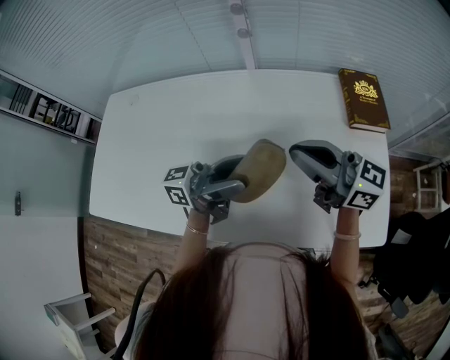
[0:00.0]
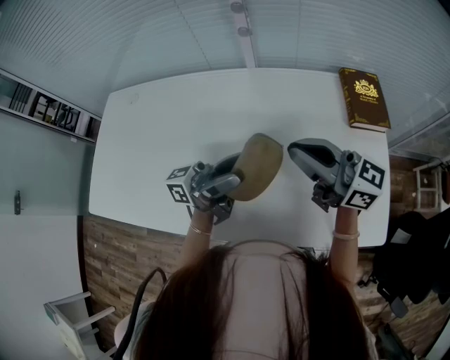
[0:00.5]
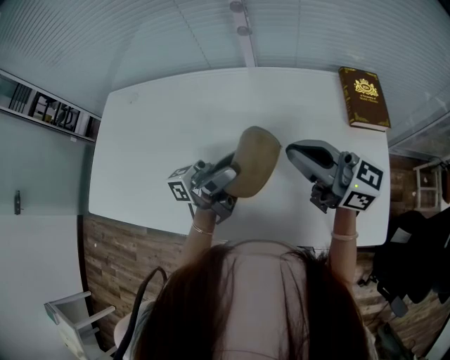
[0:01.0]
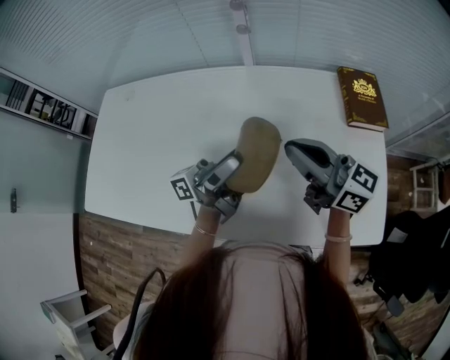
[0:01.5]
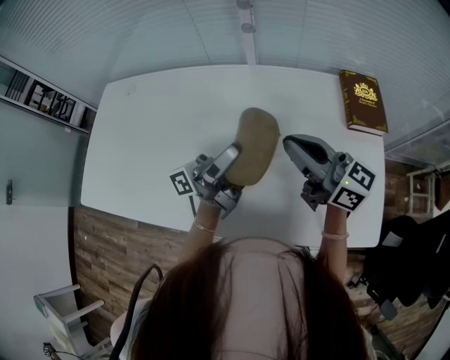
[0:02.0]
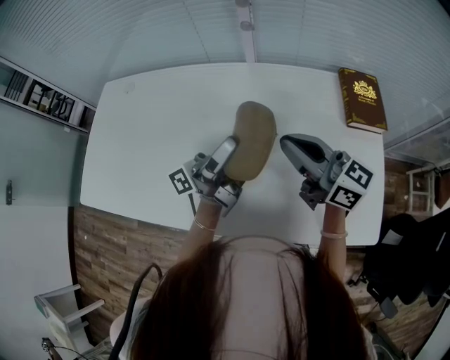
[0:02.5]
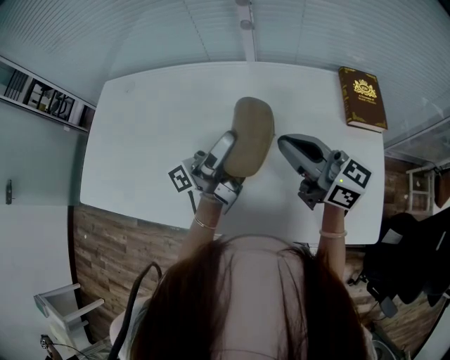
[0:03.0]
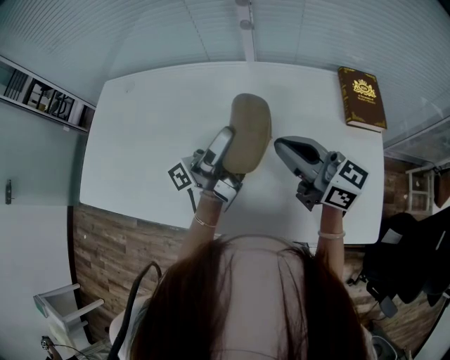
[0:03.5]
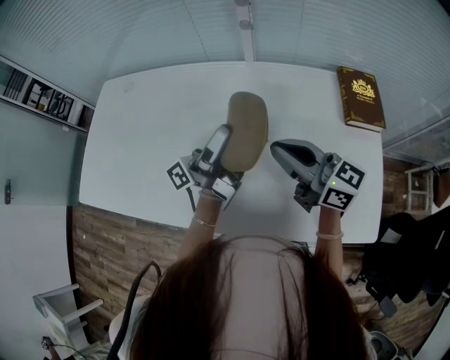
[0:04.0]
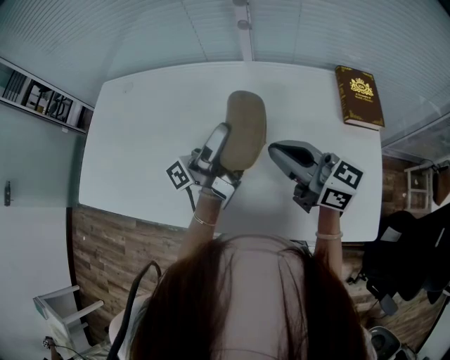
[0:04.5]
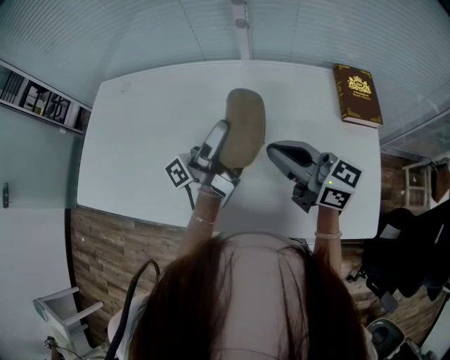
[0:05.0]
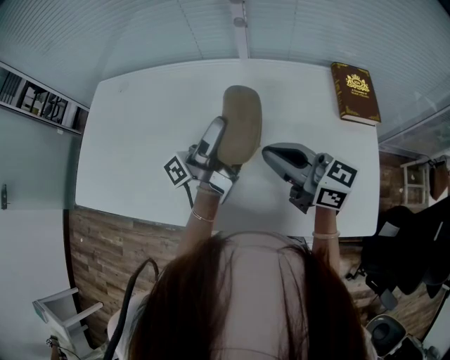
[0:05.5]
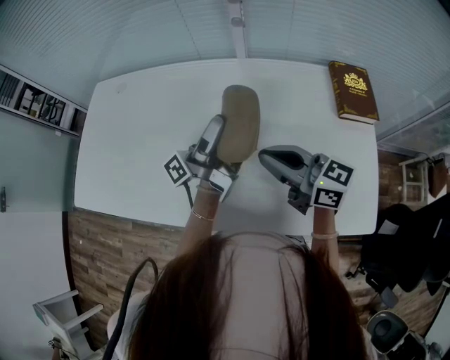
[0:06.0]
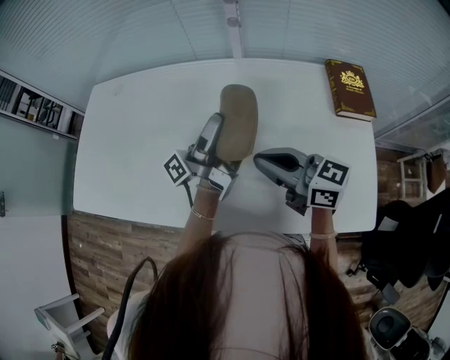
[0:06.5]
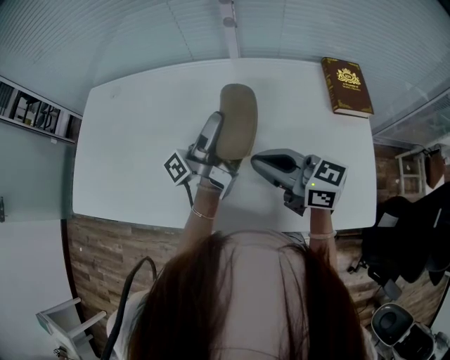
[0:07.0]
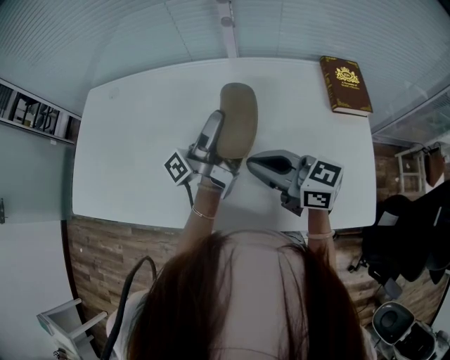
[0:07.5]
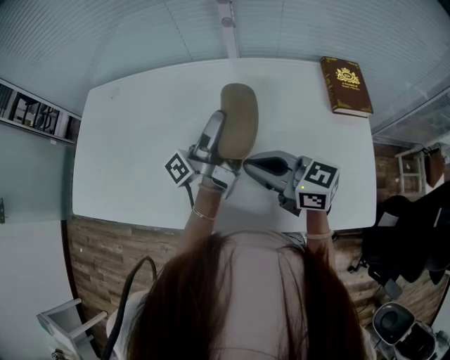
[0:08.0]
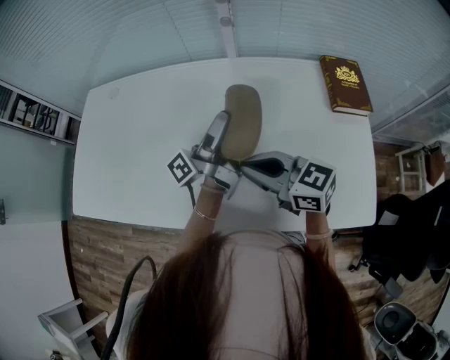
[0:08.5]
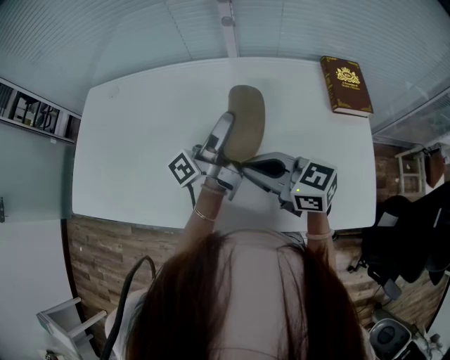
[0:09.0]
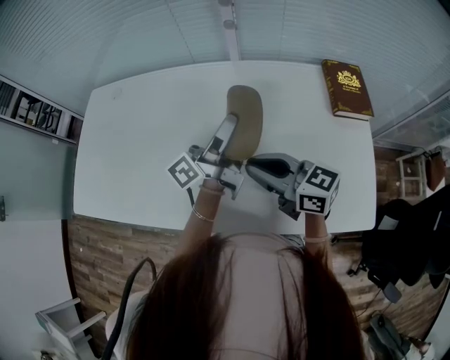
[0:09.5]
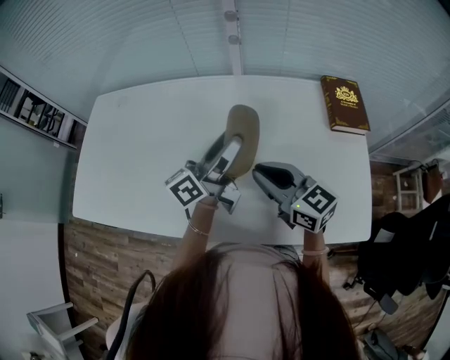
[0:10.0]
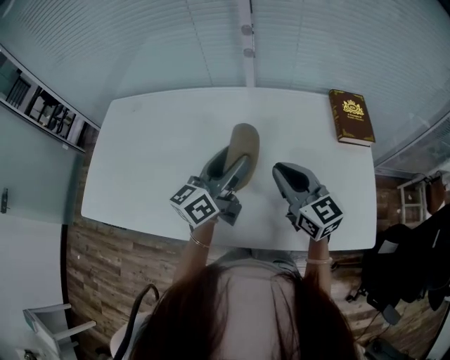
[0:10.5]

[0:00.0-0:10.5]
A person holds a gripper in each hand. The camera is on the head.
0:00.0 to 0:02.0: The left gripper rotates roughly 30 degrees.
0:02.0 to 0:04.0: The grippers stay close to where they were, moving slightly.
0:04.0 to 0:06.5: The right gripper moves some 5 cm.
0:06.5 to 0:08.5: The grippers move only a little.
0:08.5 to 0:10.5: The left gripper ends up approximately 5 cm from where it was, and twists about 50 degrees clockwise, seen from behind; the right gripper goes about 5 cm to the right, and rotates about 30 degrees.

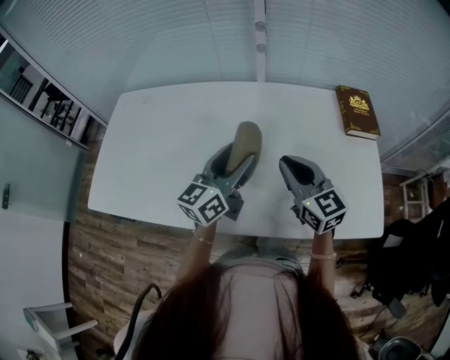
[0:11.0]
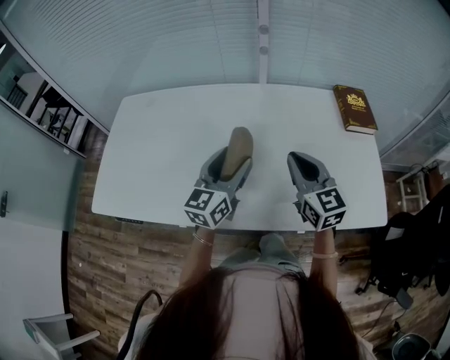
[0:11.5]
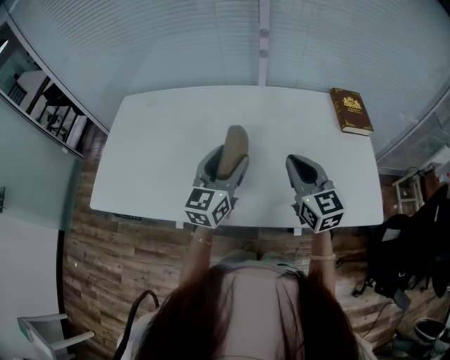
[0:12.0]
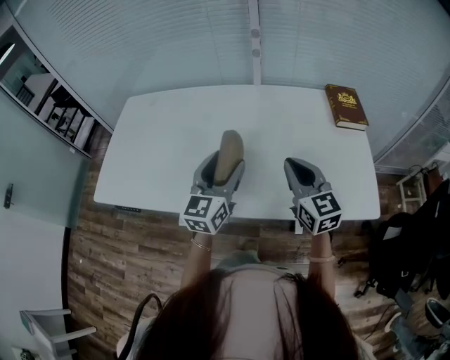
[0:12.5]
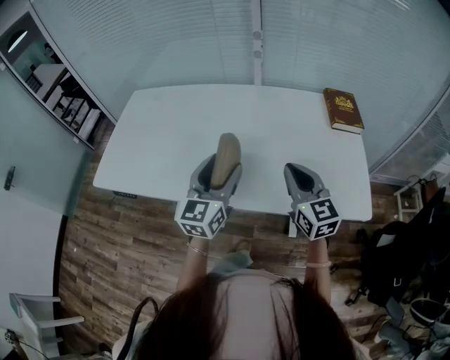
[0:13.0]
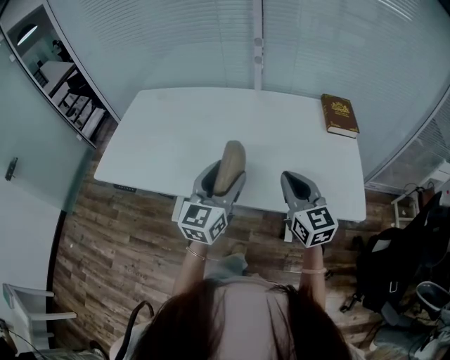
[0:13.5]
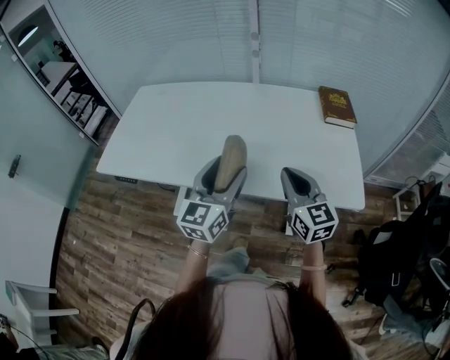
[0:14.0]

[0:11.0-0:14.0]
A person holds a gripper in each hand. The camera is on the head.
0:11.0 to 0:12.5: Both grippers move backward, roughly 10 cm. The left gripper rotates approximately 20 degrees.
0:12.5 to 0:14.0: The two grippers go some 15 cm backward.

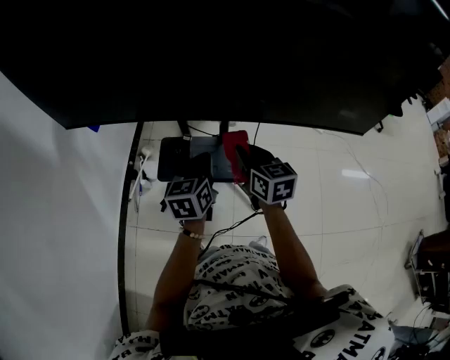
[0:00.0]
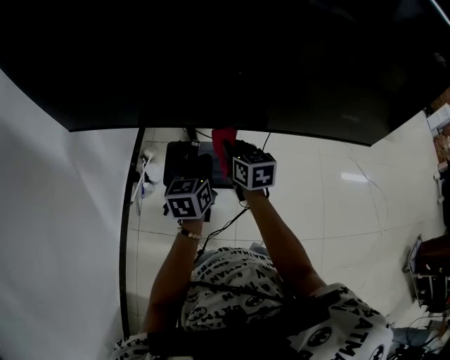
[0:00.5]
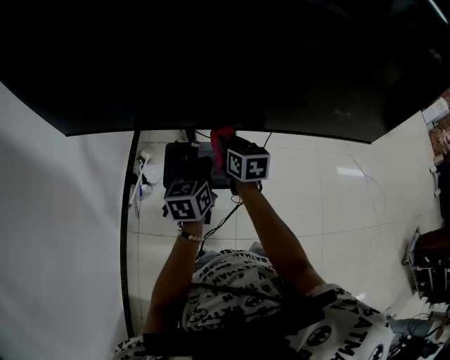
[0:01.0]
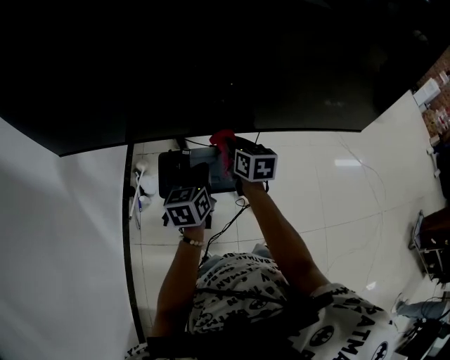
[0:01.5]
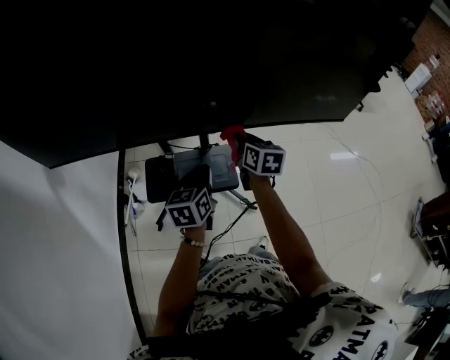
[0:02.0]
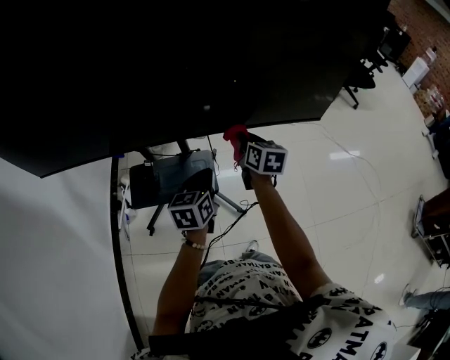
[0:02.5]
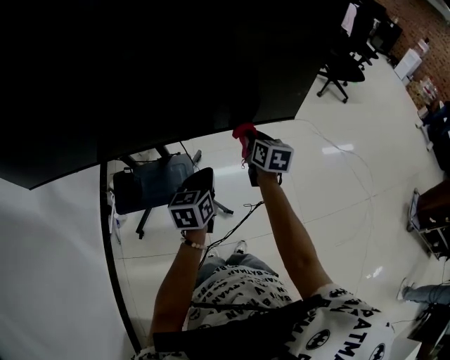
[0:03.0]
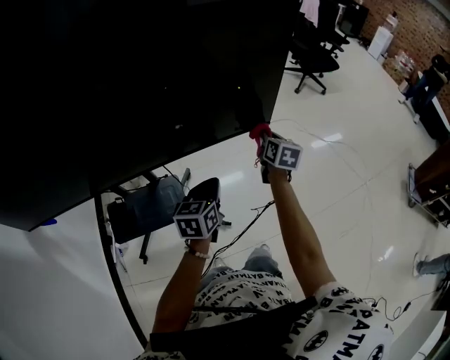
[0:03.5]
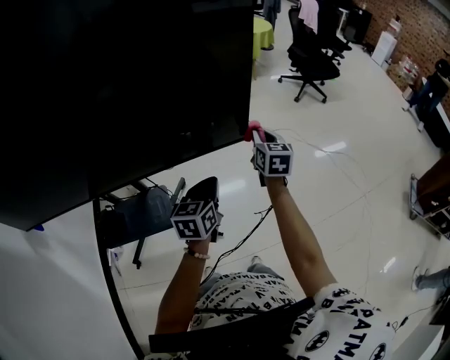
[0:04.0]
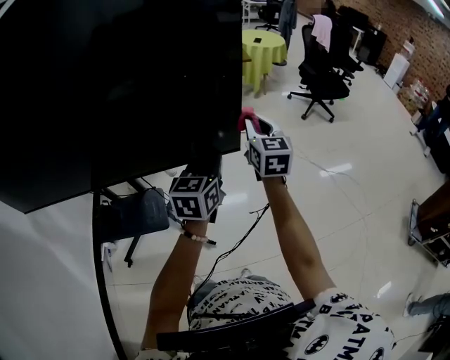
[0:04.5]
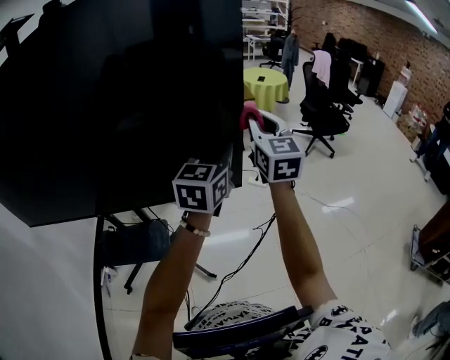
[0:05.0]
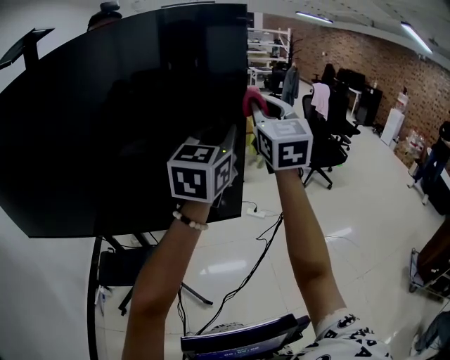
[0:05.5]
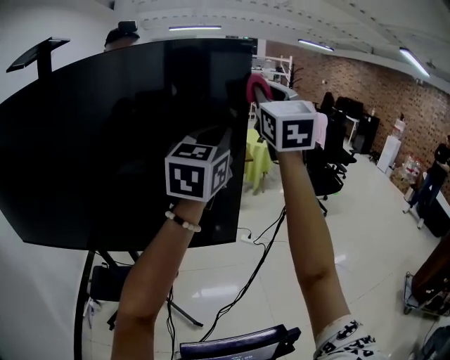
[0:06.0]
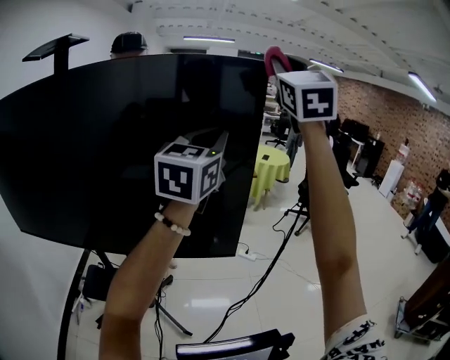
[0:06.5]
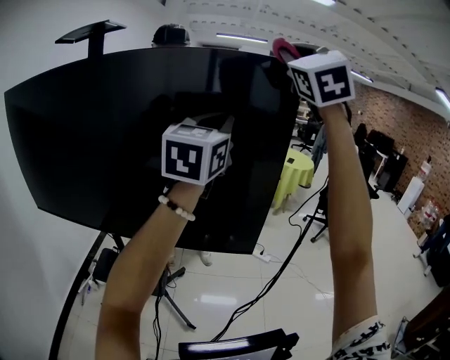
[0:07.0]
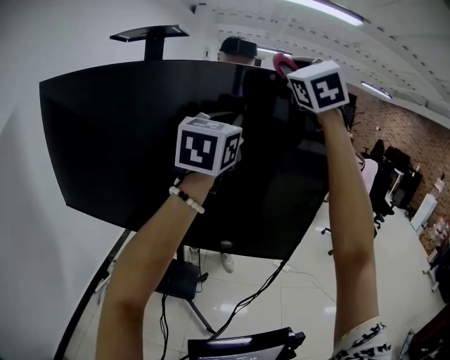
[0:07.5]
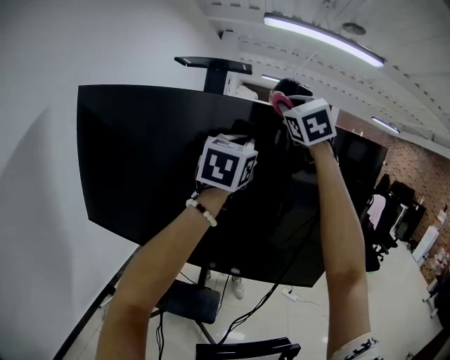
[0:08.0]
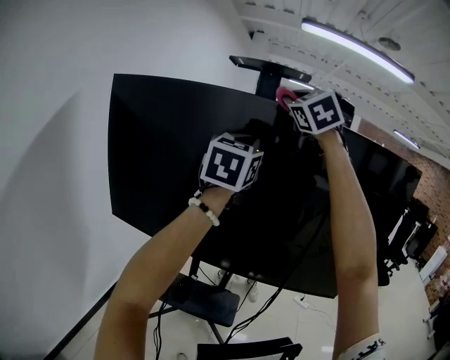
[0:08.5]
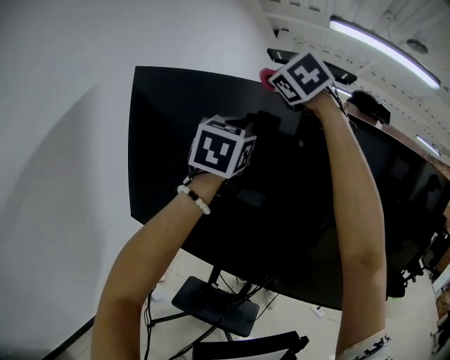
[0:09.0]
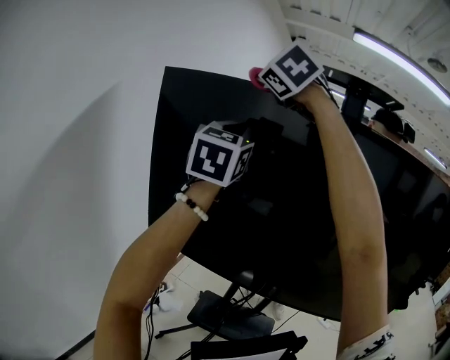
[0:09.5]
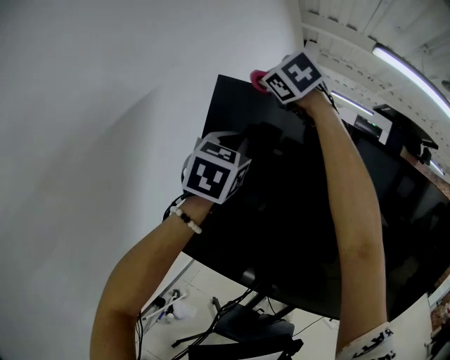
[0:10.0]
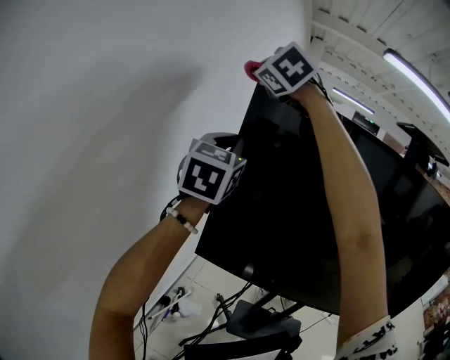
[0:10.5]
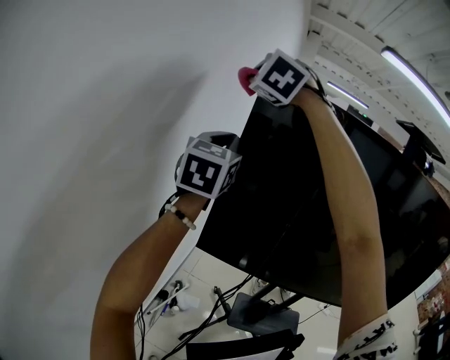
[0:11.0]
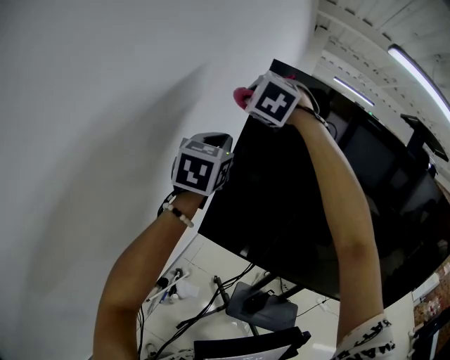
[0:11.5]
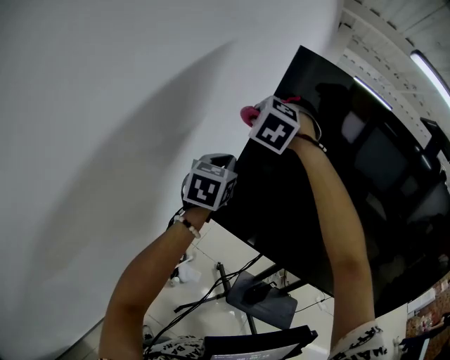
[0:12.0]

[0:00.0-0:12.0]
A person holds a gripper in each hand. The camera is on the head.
0:00.0 to 0:02.0: The left gripper moves about 5 cm. Meanwhile the right gripper is displaced forward and to the right by about 10 cm, and turns by some 20 degrees.
0:02.0 to 0:04.0: The two grippers go some 40 cm to the right. The right gripper changes its angle by some 20 degrees.
0:04.0 to 0:06.0: Both grippers move upward, some 50 cm. The right gripper tips its fingers upward by about 40 degrees. The left gripper rotates some 40 degrees.
0:06.0 to 0:08.0: Both grippers are carried to the left, roughly 40 cm. The right gripper rotates approximately 30 degrees.
0:08.0 to 0:10.0: Both grippers are carried to the left, some 60 cm. The right gripper swivels about 30 degrees.
0:10.0 to 0:12.0: The two grippers go approximately 30 cm downward and to the left. The right gripper turns by roughly 30 degrees. The left gripper swivels about 20 degrees.

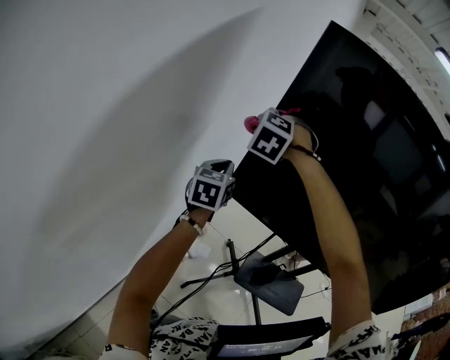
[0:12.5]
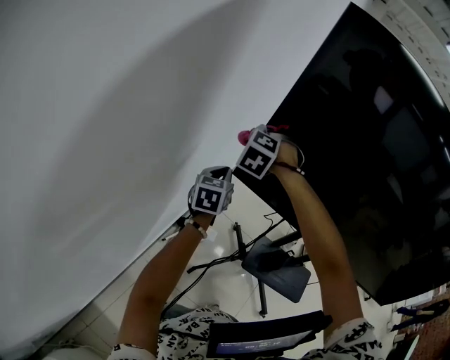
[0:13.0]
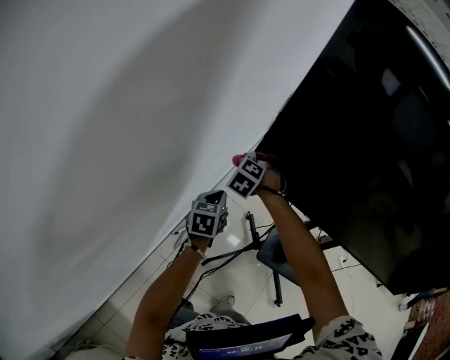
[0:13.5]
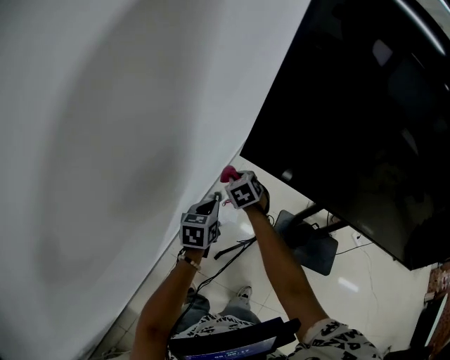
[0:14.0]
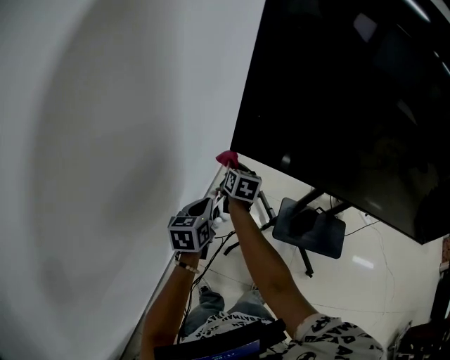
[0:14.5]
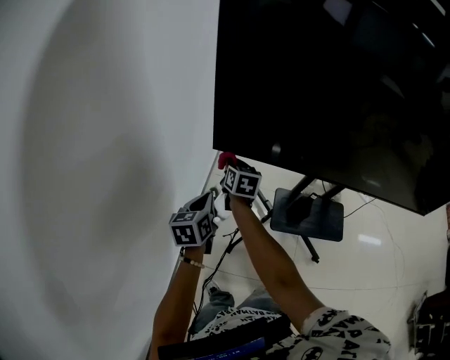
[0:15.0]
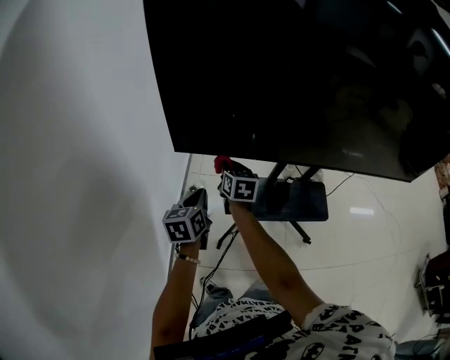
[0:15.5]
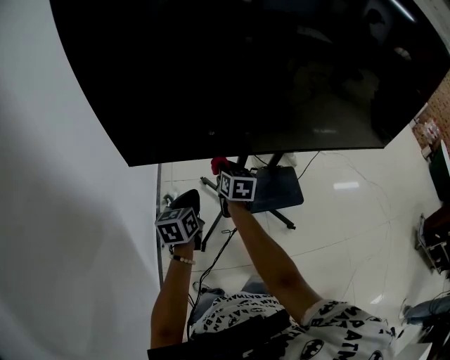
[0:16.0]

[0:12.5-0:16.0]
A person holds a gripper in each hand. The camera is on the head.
0:12.5 to 0:14.5: Both grippers travel together downward, about 40 cm. The right gripper twists about 100 degrees clockwise, seen from behind.
0:14.5 to 0:16.0: Both grippers travel together to the right, about 25 cm. The left gripper changes its angle by some 20 degrees.
